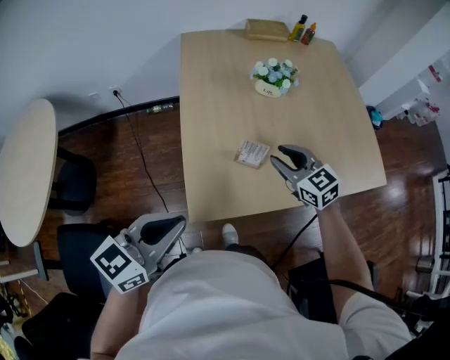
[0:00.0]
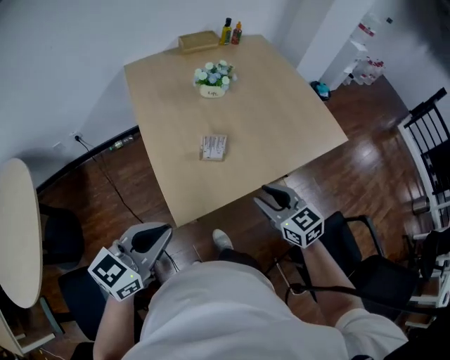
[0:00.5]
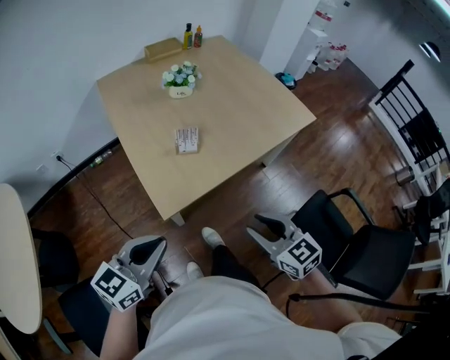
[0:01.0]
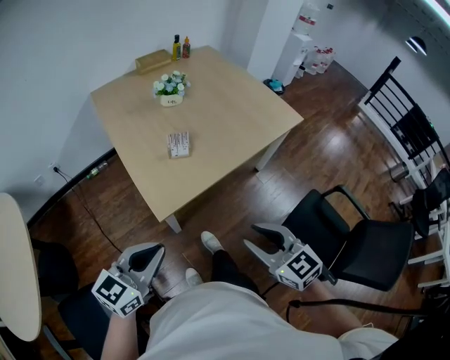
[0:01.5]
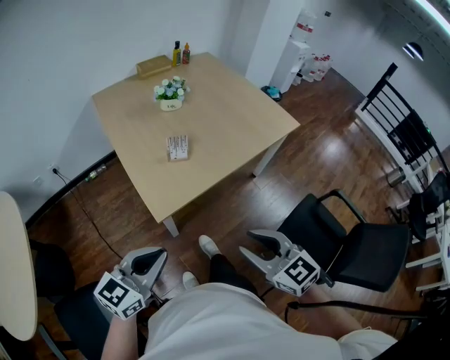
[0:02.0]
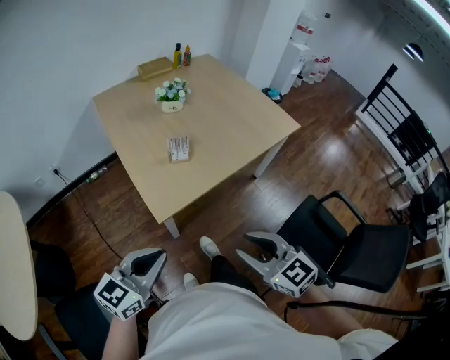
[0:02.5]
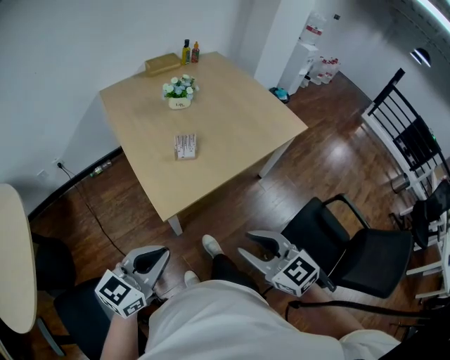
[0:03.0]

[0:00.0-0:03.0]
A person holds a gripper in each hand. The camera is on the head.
0:00.0 to 0:01.5: The right gripper goes approximately 40 cm backward, and rotates approximately 30 degrees; the left gripper travels backward by some 15 cm, and changes its angle by approximately 20 degrees.
0:01.5 to 0:03.0: There are only small adjustments of the grippers.

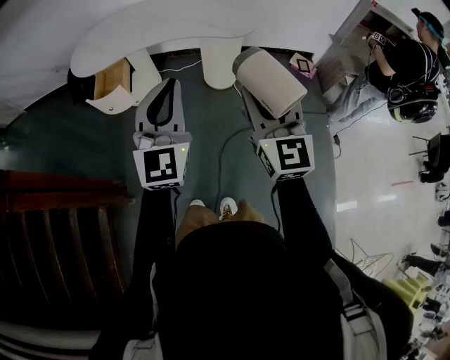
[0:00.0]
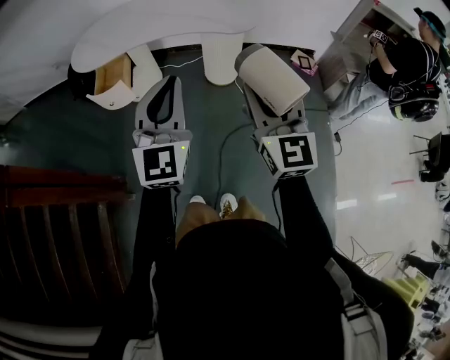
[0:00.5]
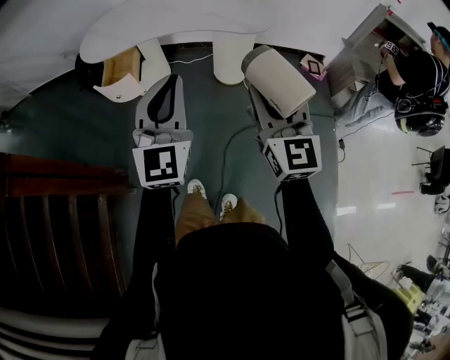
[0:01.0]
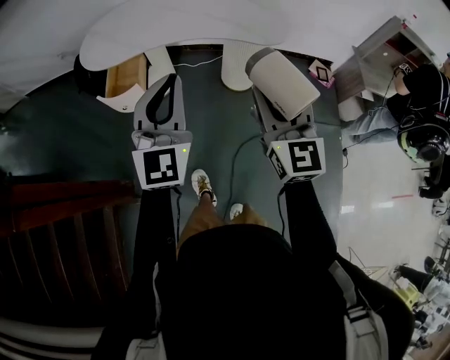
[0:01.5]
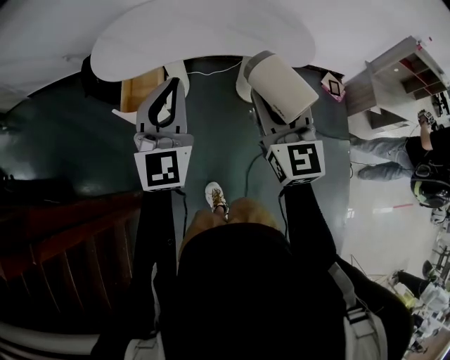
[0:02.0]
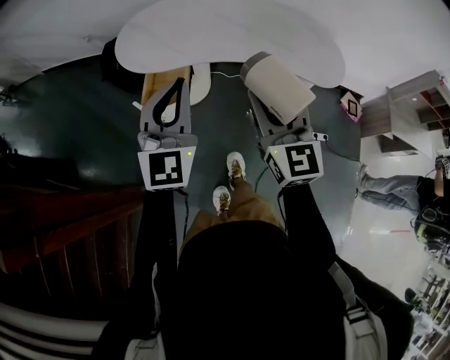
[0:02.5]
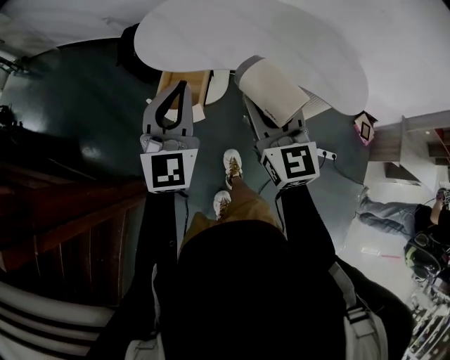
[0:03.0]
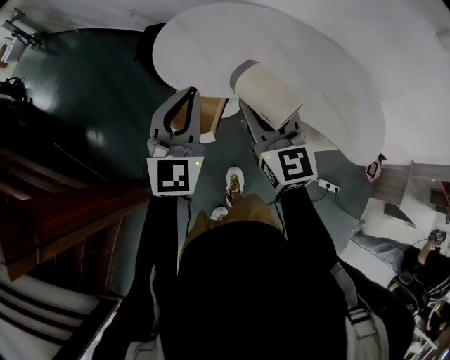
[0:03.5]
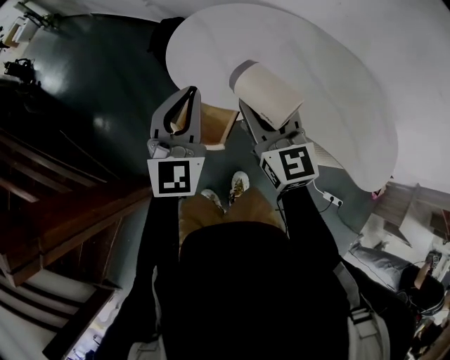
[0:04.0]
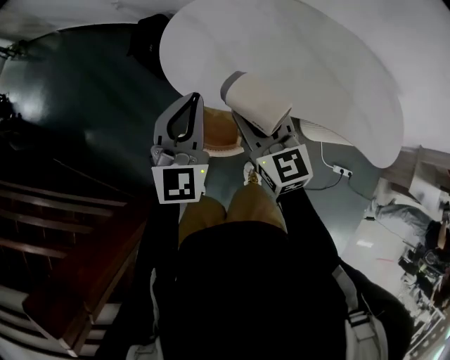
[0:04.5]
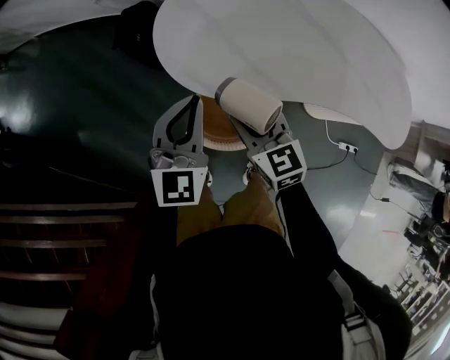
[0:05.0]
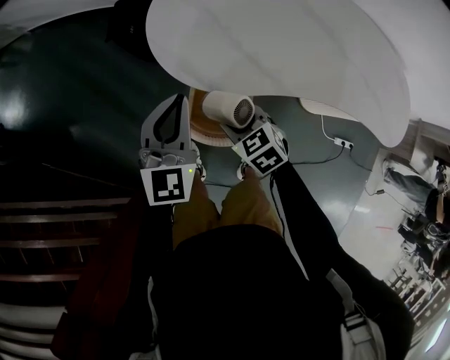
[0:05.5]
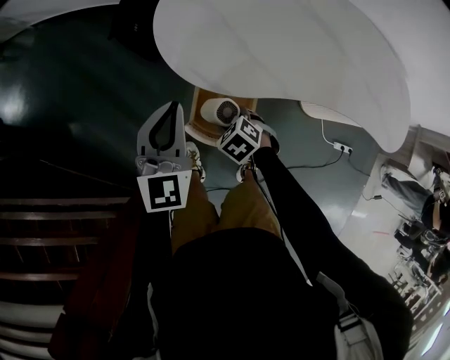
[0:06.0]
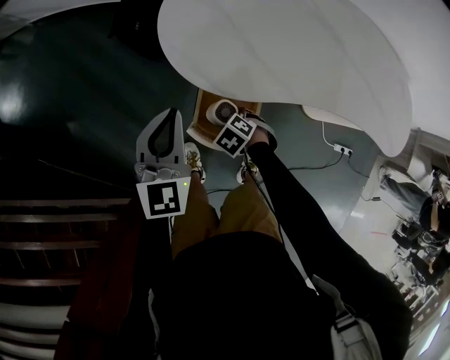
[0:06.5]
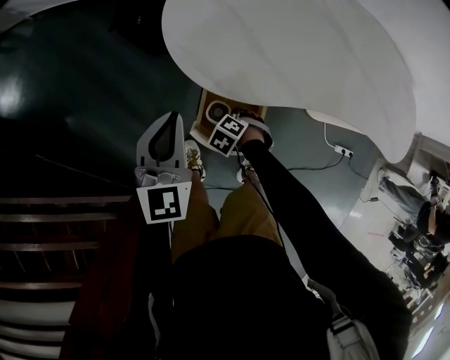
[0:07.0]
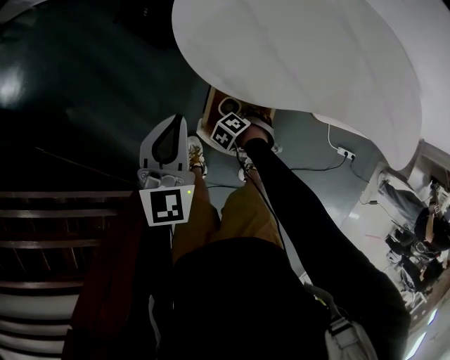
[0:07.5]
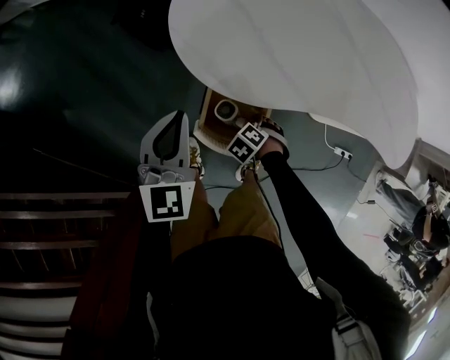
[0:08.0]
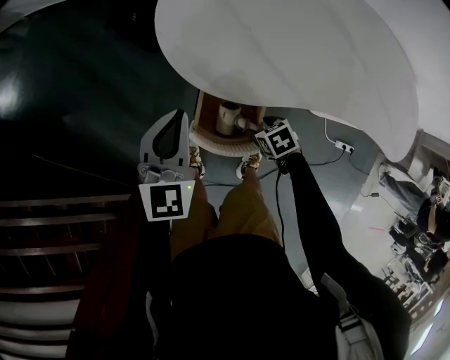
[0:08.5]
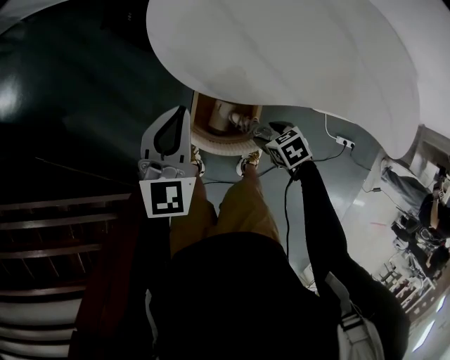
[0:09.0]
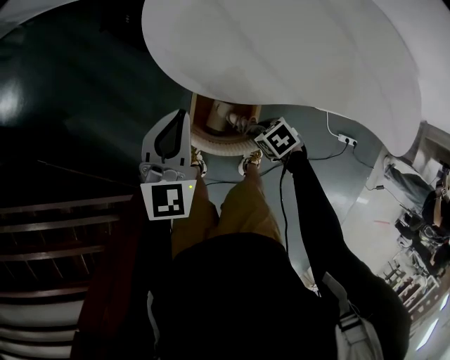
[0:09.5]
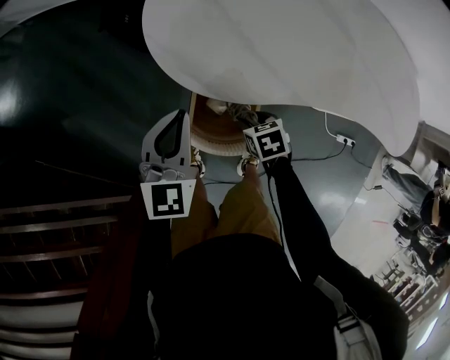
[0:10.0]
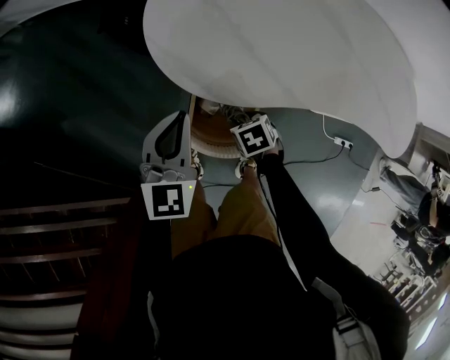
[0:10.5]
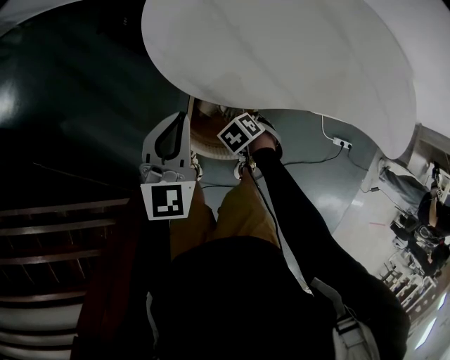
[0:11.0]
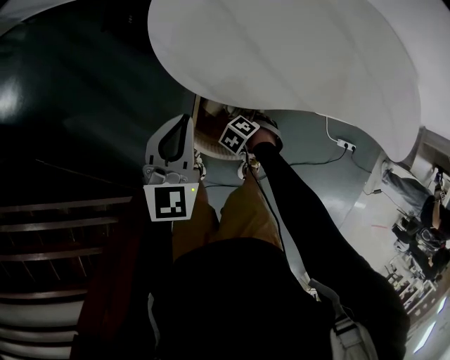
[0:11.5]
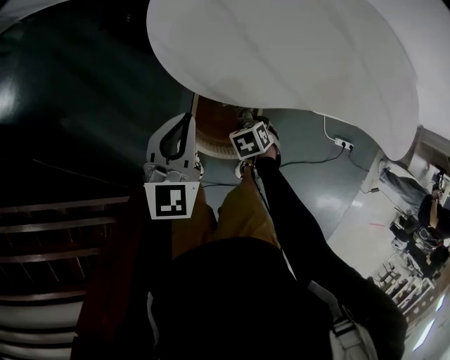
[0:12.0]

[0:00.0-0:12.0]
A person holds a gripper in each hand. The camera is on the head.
0:00.0 to 0:02.0: Both grippers travel together forward and to the left, some 25 cm.
0:02.0 to 0:04.0: The right gripper ends up about 40 cm from where it was, and rotates about 40 degrees. Meanwhile the left gripper moves some 30 cm, and changes its angle by roughly 30 degrees.
0:04.0 to 0:06.0: The left gripper heads downward, to the left and forward, covering roughly 20 cm, while the right gripper travels downward and to the left by approximately 40 cm, and angles its fingers downward, by roughly 70 degrees.
0:06.0 to 0:08.0: The right gripper heads downward, covering about 10 cm, and turns by roughly 20 degrees. Meanwhile the left gripper moves some 5 cm.
0:08.0 to 0:10.0: The right gripper travels upward by approximately 5 cm, and changes its angle by some 50 degrees.
0:10.0 to 0:12.0: The right gripper moves downward, approximately 5 cm.

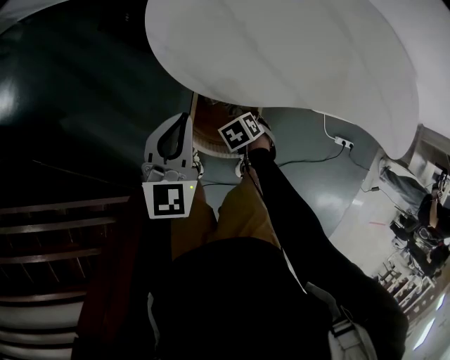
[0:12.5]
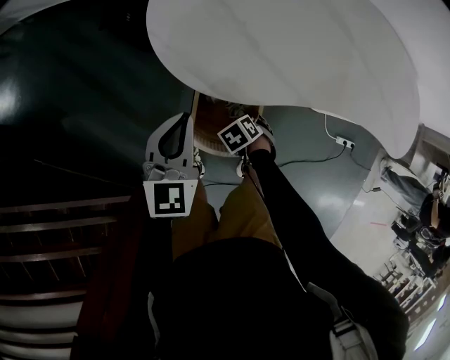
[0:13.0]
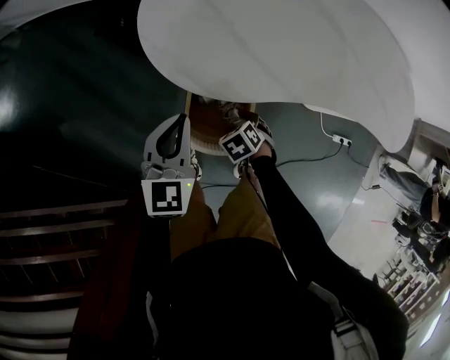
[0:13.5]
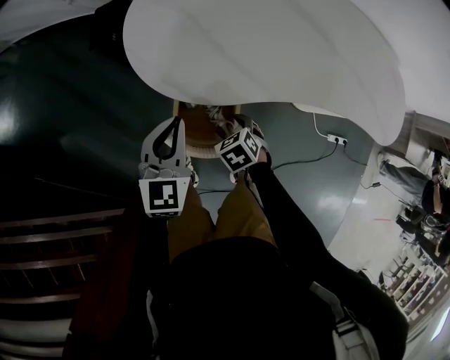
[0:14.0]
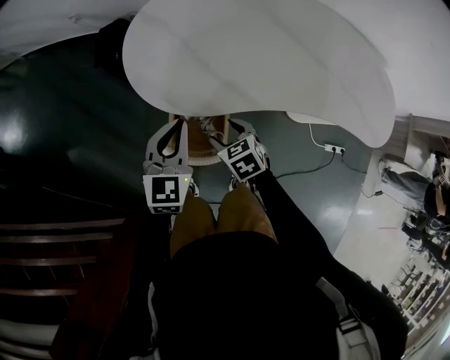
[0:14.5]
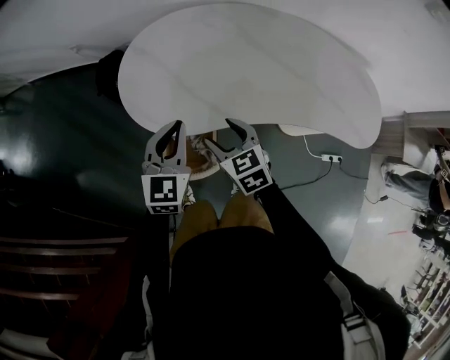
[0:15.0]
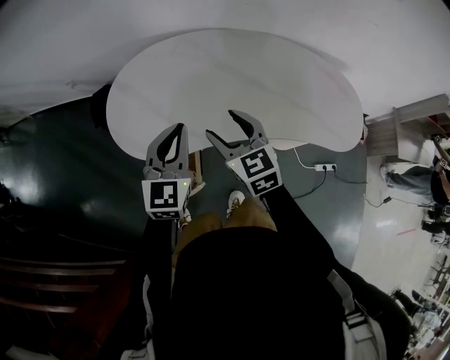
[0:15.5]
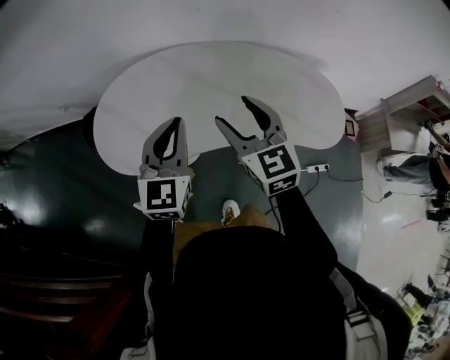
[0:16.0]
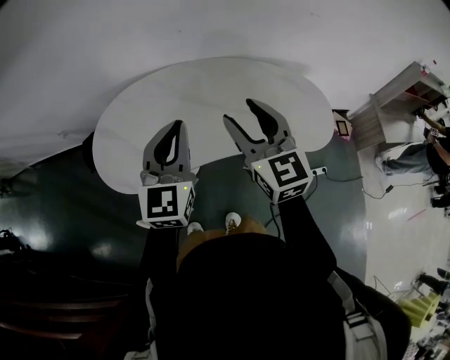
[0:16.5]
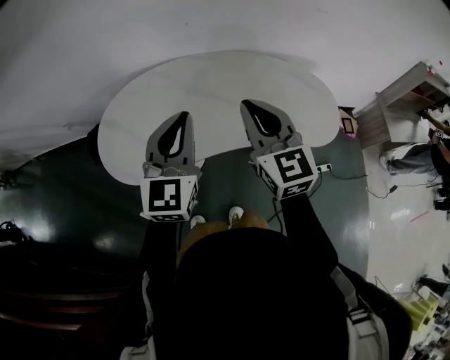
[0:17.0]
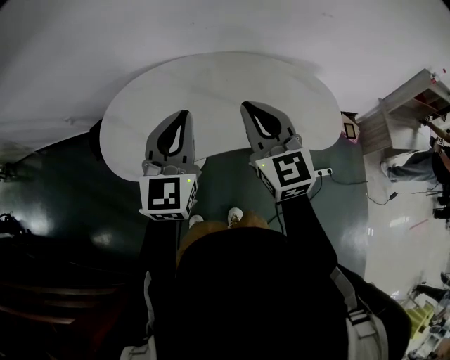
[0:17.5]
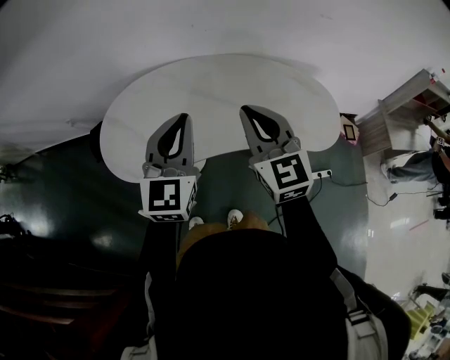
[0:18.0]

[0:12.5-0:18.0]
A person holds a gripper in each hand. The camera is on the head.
0:12.5 to 0:14.5: The left gripper moves about 10 cm. The right gripper travels upward by approximately 15 cm, and tips its fingers upward by about 30 degrees.
0:14.5 to 0:16.0: The right gripper is displaced upward and to the right by some 40 cm, and tips its fingers upward by roughly 40 degrees, while the left gripper heads to the right and upward, covering some 30 cm.
0:16.0 to 0:18.0: The right gripper shifts roughly 5 cm to the right and upward, and closes, while the left gripper is displaced upward by approximately 5 cm.

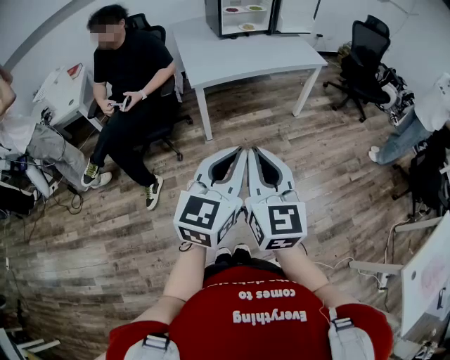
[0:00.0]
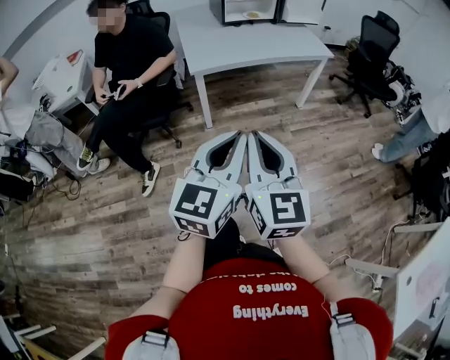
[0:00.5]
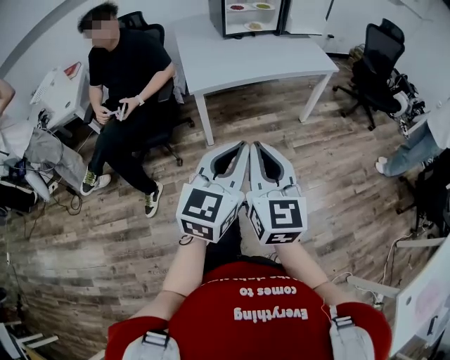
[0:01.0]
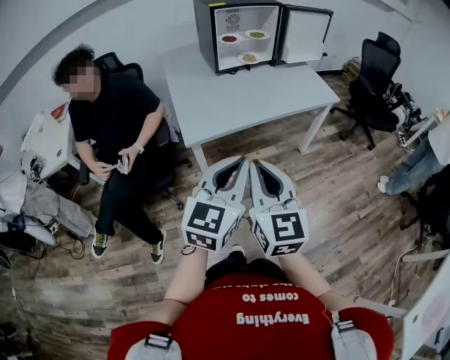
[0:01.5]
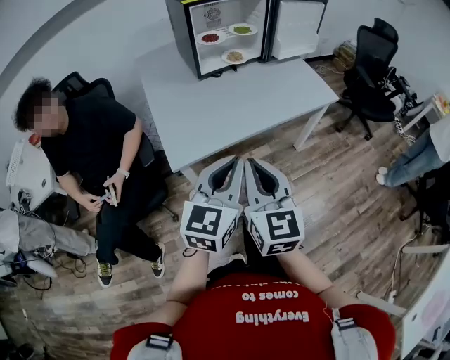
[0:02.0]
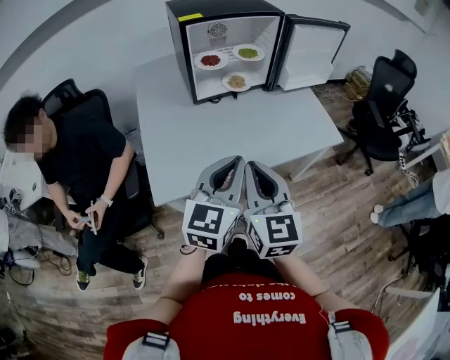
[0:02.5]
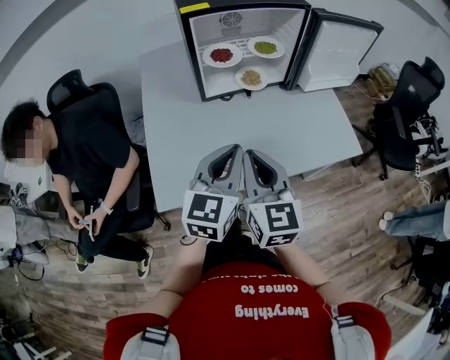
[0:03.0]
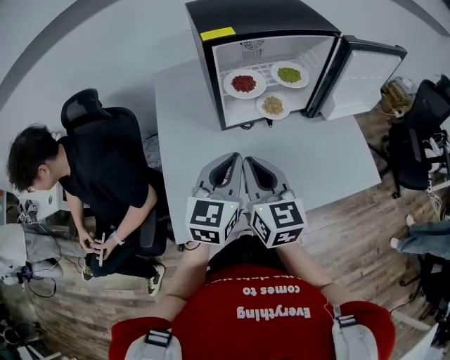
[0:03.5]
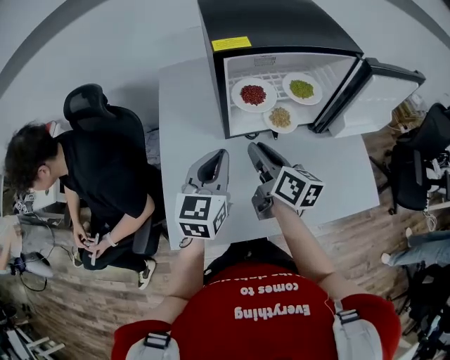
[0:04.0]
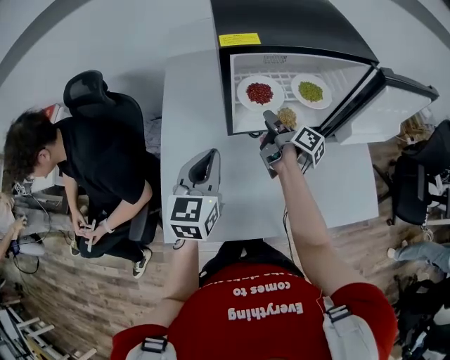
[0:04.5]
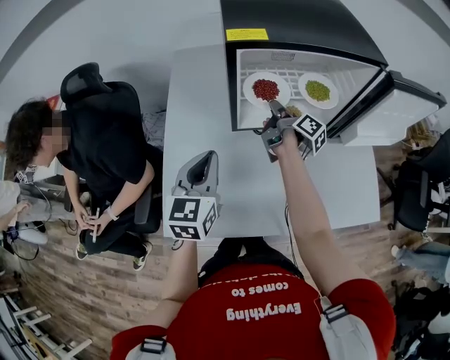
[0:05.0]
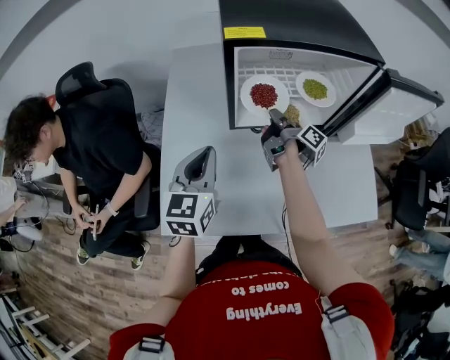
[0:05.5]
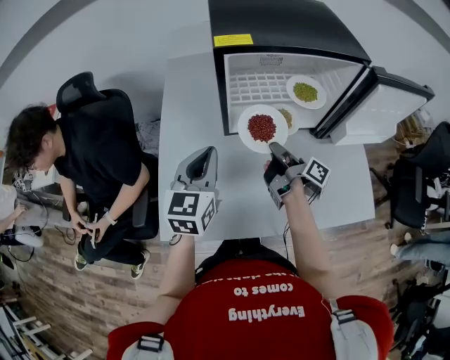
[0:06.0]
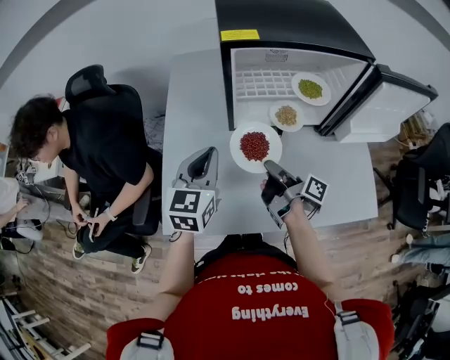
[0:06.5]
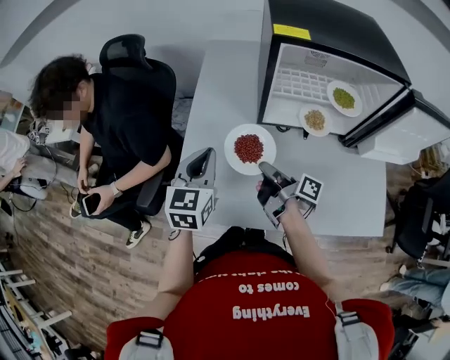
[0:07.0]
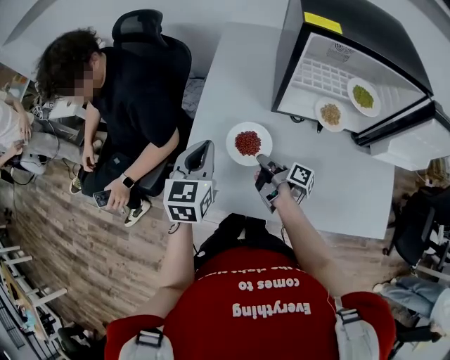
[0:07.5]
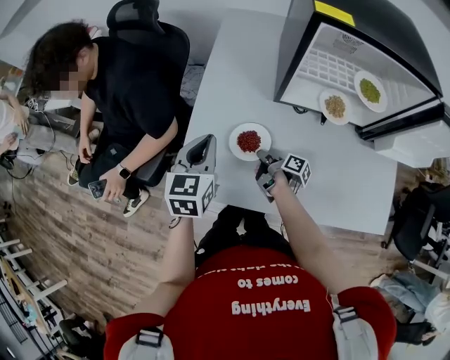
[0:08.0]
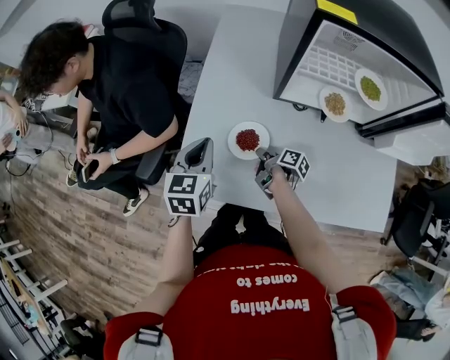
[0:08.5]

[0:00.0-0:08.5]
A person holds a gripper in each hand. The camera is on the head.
0:00.0 to 0:02.0: The left gripper moves about 50 cm.
0:02.0 to 0:04.0: The left gripper moves roughly 50 cm, and rotates roughly 20 degrees.
0:06.5 to 0:08.5: The left gripper moves roughly 15 cm, and swivels about 20 degrees.
